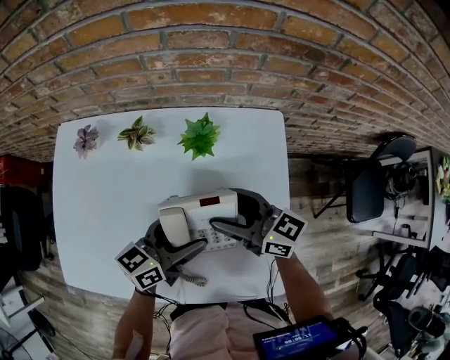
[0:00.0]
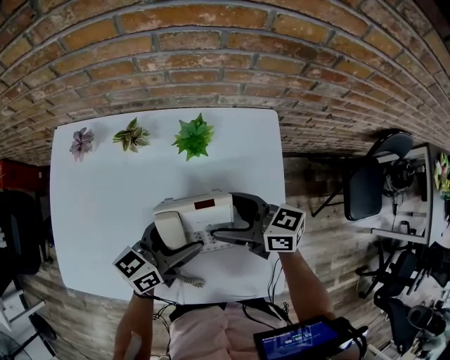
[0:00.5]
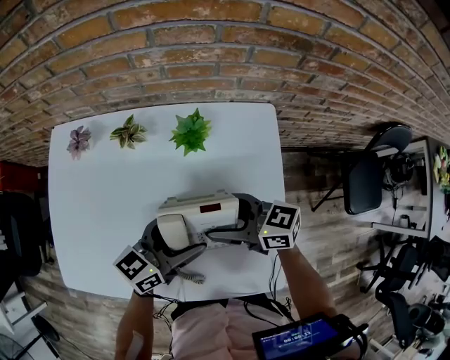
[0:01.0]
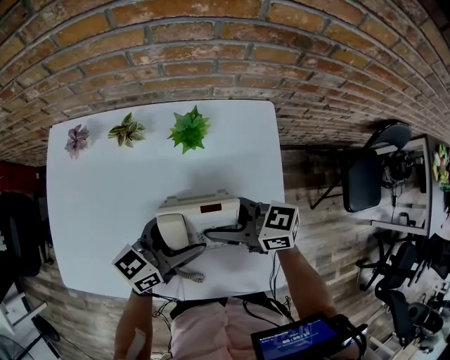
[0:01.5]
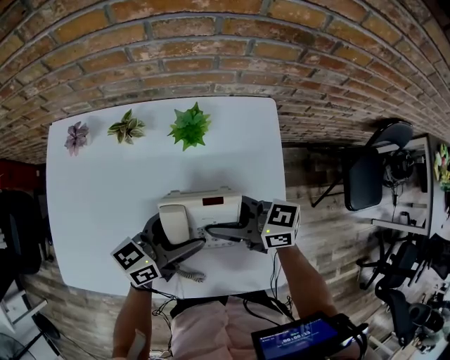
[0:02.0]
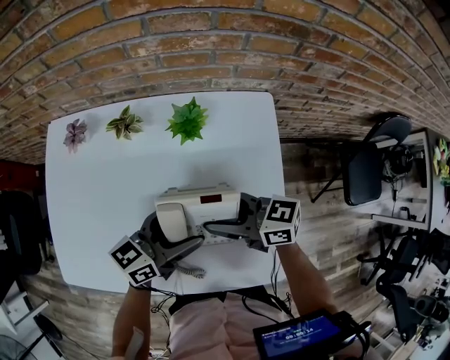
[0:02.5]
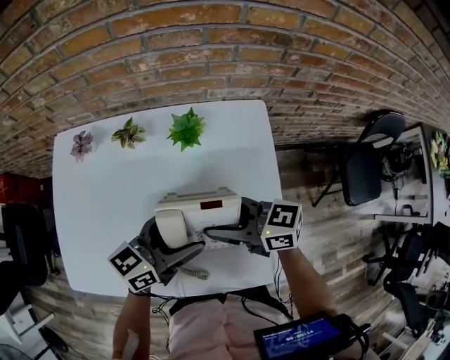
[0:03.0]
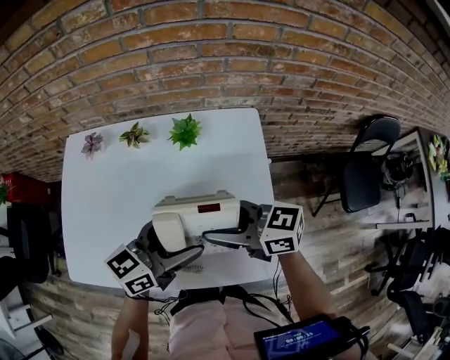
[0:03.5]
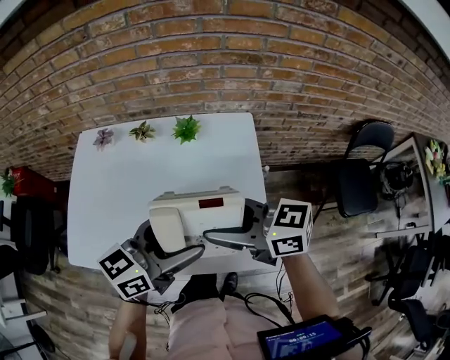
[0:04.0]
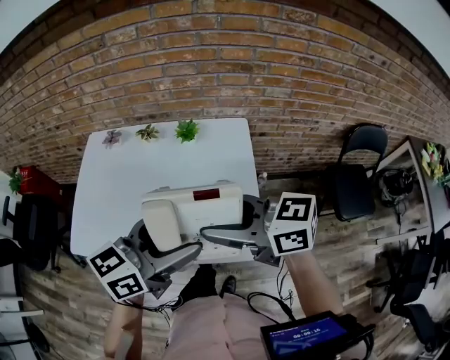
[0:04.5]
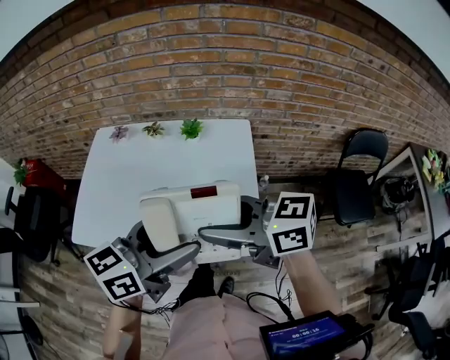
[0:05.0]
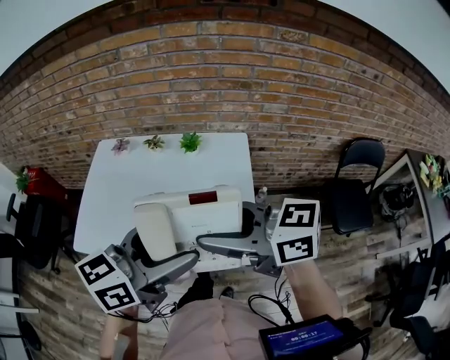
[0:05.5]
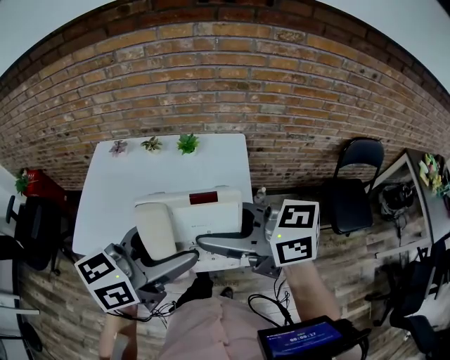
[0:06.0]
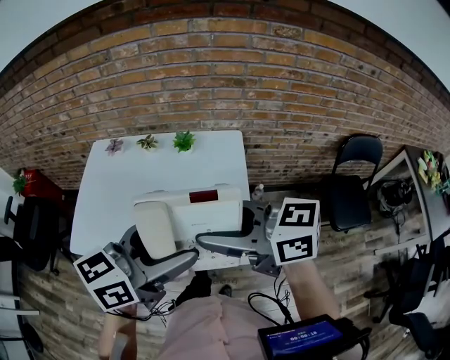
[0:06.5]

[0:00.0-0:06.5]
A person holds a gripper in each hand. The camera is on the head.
0:00.0 to 0:02.0: The right gripper changes place by roughly 5 cm.
0:02.0 to 0:04.5: Both grippers move upward, approximately 20 cm.
0:04.5 to 0:06.5: The grippers both shift upward by some 5 cm.

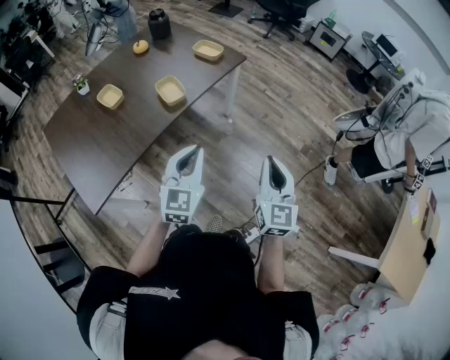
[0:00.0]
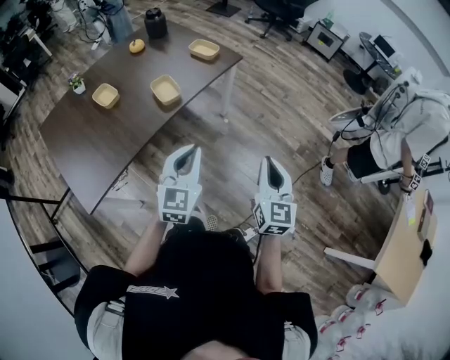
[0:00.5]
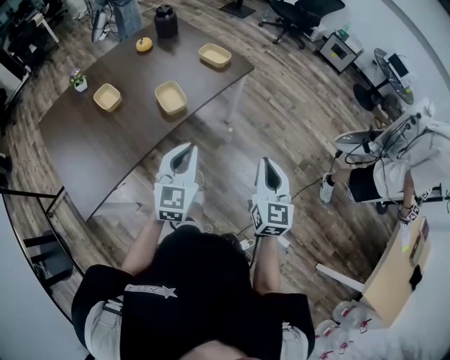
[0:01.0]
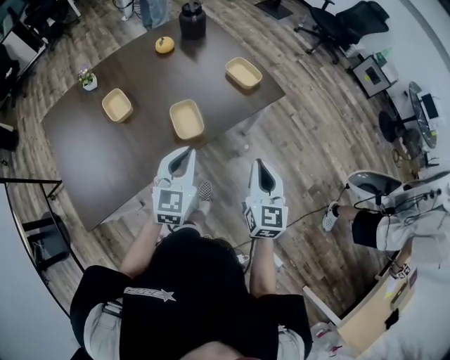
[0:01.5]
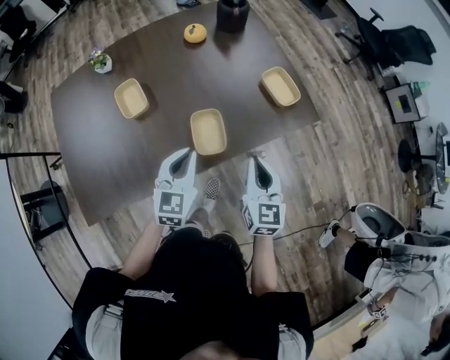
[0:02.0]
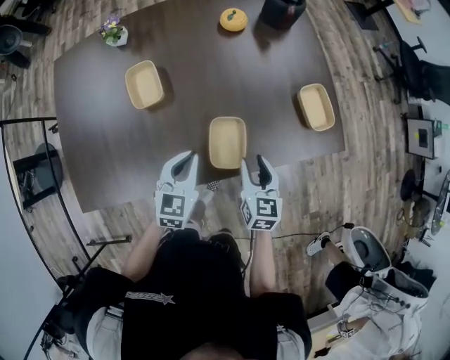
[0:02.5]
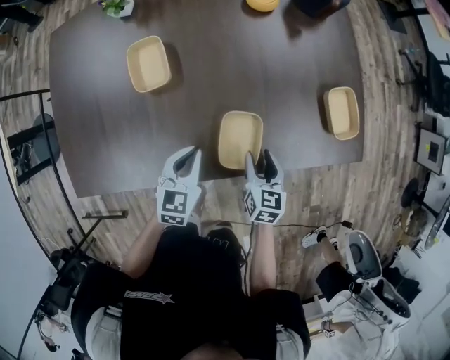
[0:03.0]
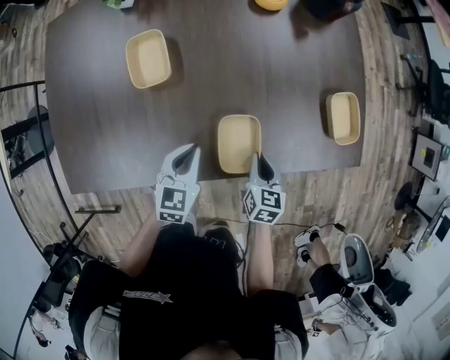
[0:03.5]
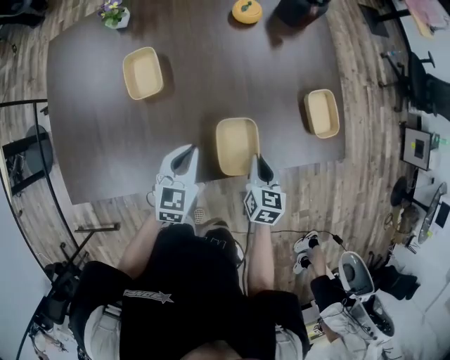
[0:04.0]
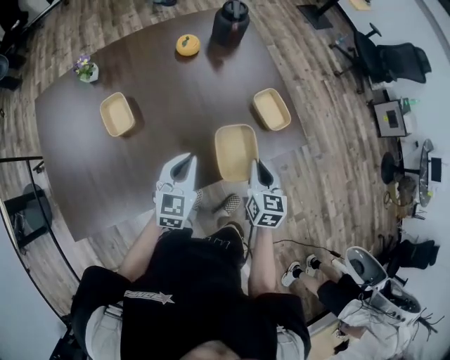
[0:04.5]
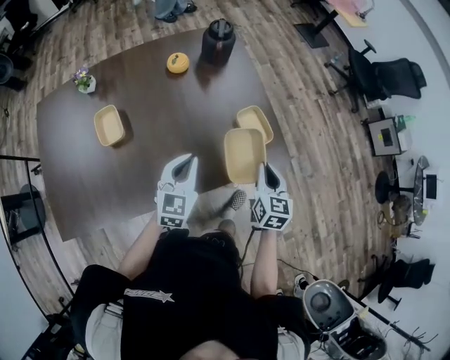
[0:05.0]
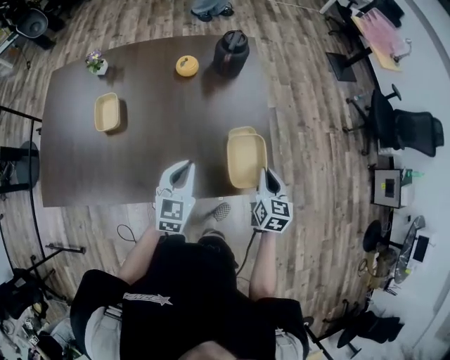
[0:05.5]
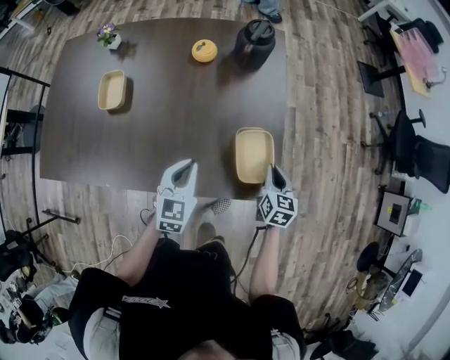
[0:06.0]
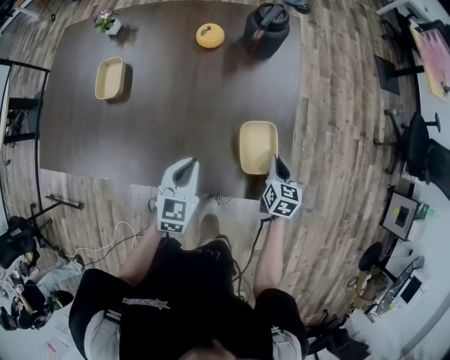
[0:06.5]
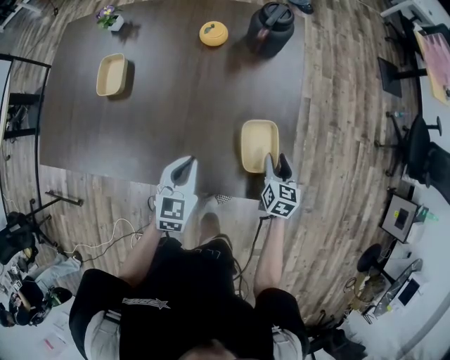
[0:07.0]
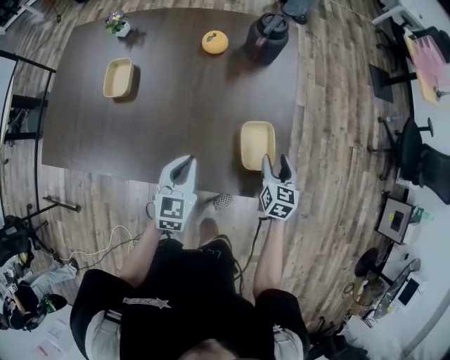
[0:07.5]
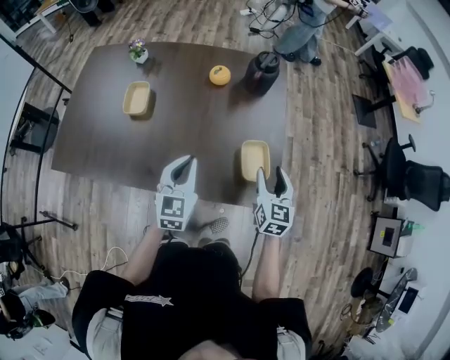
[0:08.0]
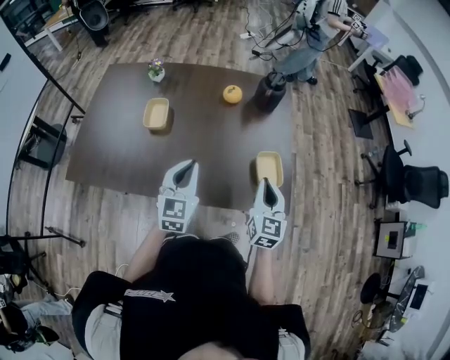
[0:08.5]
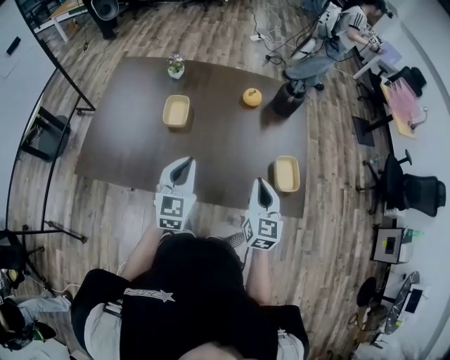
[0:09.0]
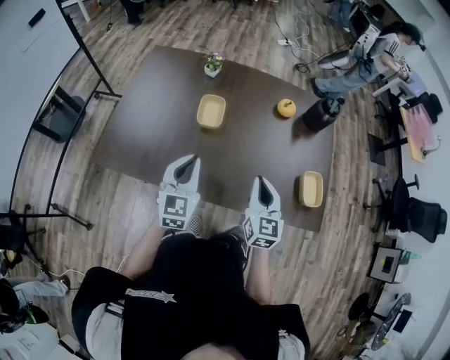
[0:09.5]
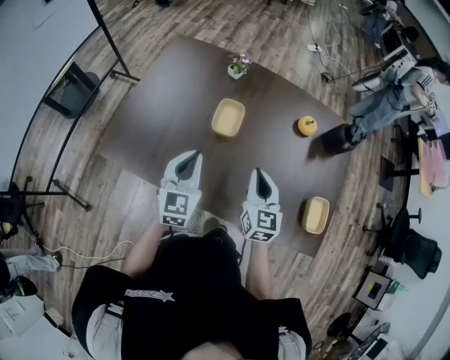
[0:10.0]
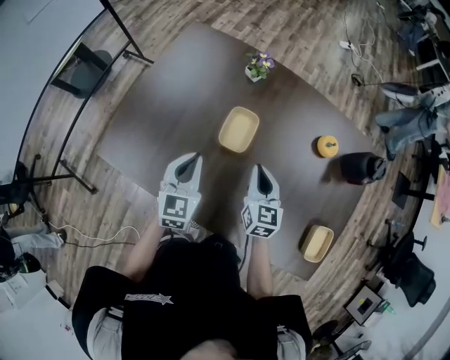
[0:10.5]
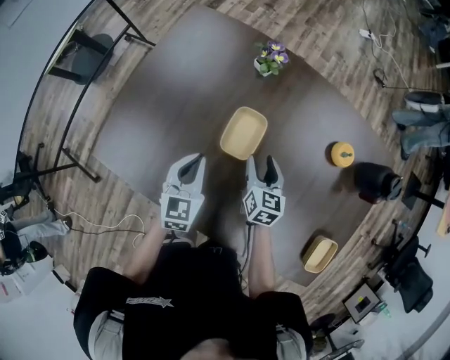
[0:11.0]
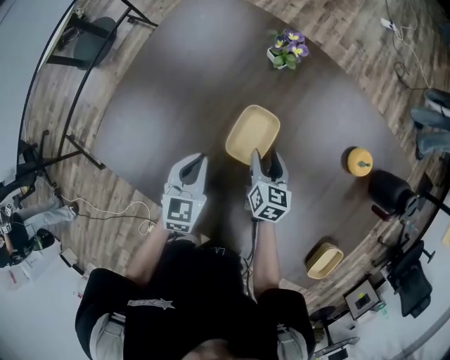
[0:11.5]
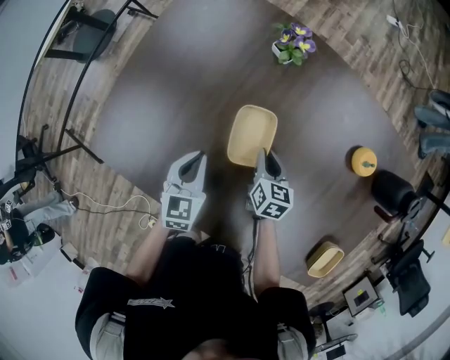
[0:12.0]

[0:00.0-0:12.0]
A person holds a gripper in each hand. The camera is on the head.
0:00.0 to 0:02.0: The left gripper shifts by approximately 35 cm, and changes its angle by some 30 degrees, while the right gripper changes place by approximately 50 cm, and turns by roughly 30 degrees.
0:02.0 to 0:04.0: The right gripper travels downward and forward by some 20 cm, swivels approximately 20 degrees, and opens, then closes again, while the left gripper goes about 15 cm downward, to the left and forward.
0:04.0 to 0:06.0: The left gripper moves to the right, approximately 25 cm; the right gripper is displaced to the right and forward by some 35 cm.
0:06.0 to 0:08.0: The right gripper travels upward and to the left by some 15 cm, and opens up; the left gripper shifts approximately 10 cm upward.
0:08.0 to 0:10.0: The two grippers go roughly 35 cm to the left. The right gripper closes up.
0:10.0 to 0:12.0: The two grippers go some 25 cm downward and forward. The left gripper swivels about 30 degrees, while the right gripper swivels about 30 degrees, and opens, then closes once more.

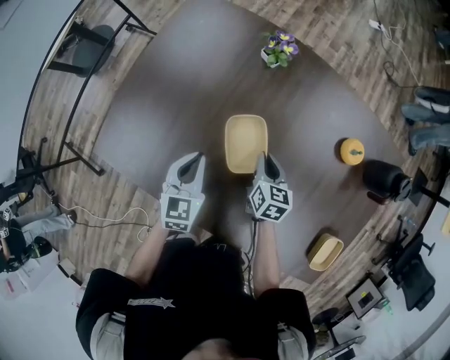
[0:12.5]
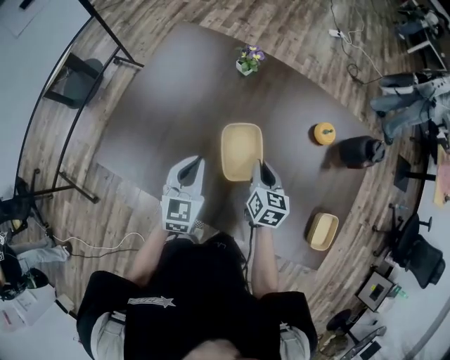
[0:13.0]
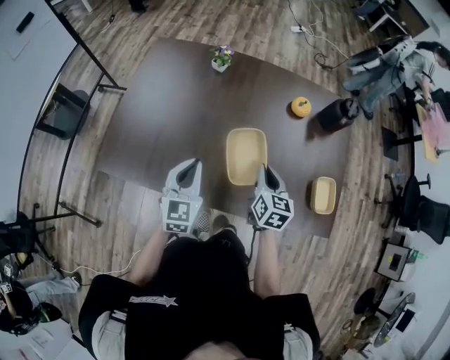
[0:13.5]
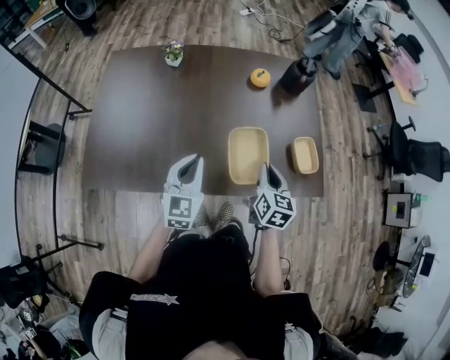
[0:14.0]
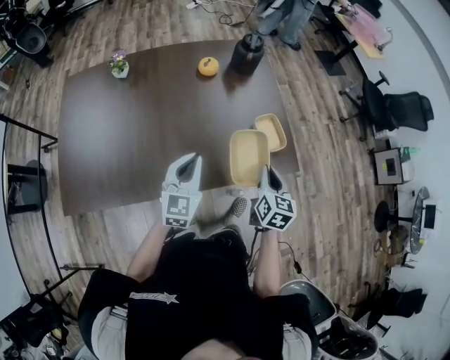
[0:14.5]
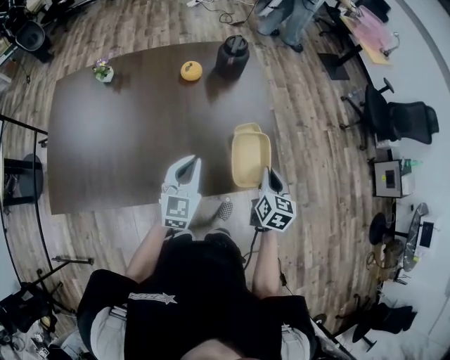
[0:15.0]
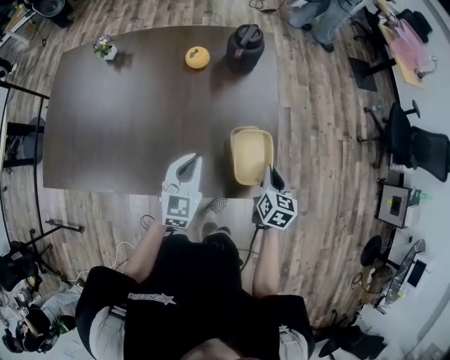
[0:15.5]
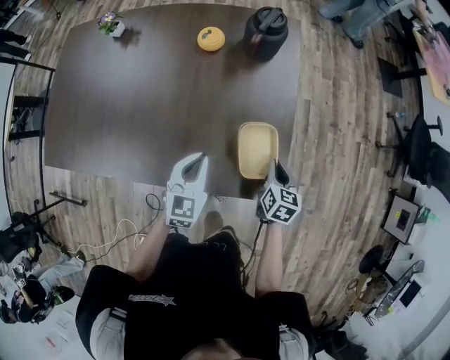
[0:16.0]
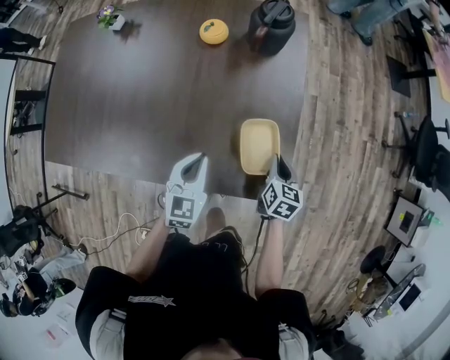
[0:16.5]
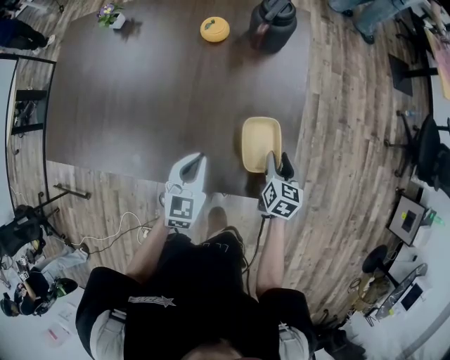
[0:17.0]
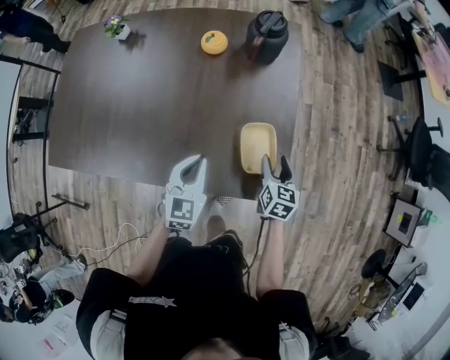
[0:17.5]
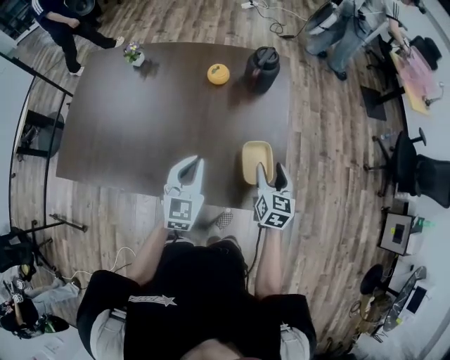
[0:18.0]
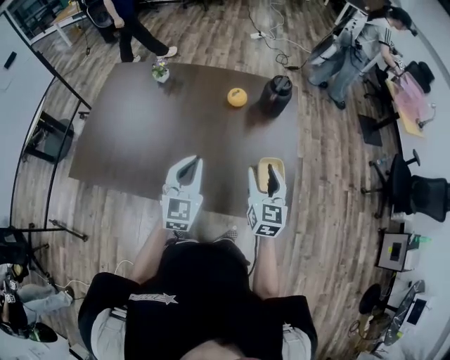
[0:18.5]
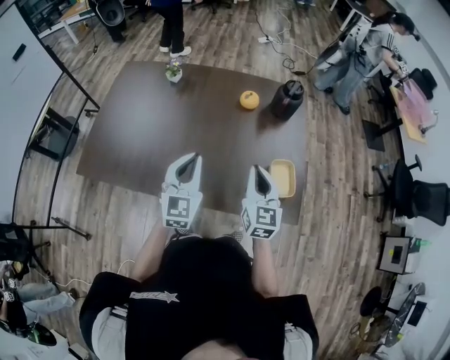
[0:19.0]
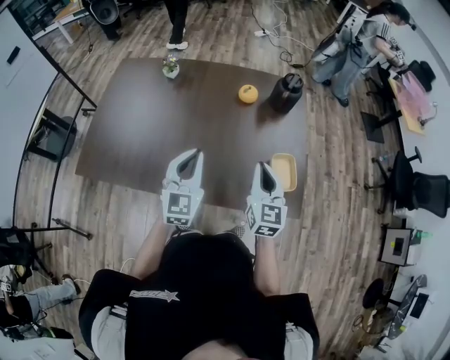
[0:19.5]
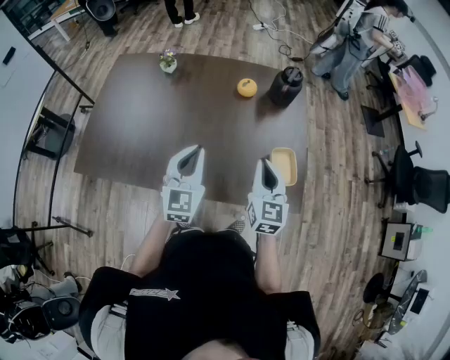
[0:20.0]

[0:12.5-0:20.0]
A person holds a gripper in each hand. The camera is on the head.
0:12.5 to 0:14.5: The left gripper ends up approximately 35 cm from where it was, and changes its angle by some 50 degrees, while the right gripper ends up some 50 cm from where it was, and rotates some 50 degrees.
0:14.5 to 0:16.5: The right gripper moves downward, forward and to the right, approximately 30 cm, and changes its angle by about 20 degrees. Meanwhile the left gripper travels to the right, downward and forward by about 20 cm, and changes its angle by approximately 20 degrees.
0:16.5 to 0:18.0: The left gripper travels upward by approximately 10 cm. The right gripper shifts about 15 cm upward and to the left, and opens its fingers.
0:18.0 to 0:20.0: Both grippers travel together to the left and upward, roughly 20 cm. The right gripper closes.
